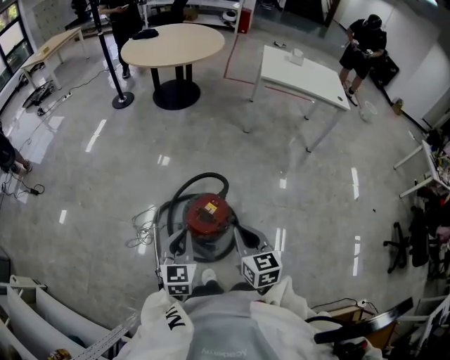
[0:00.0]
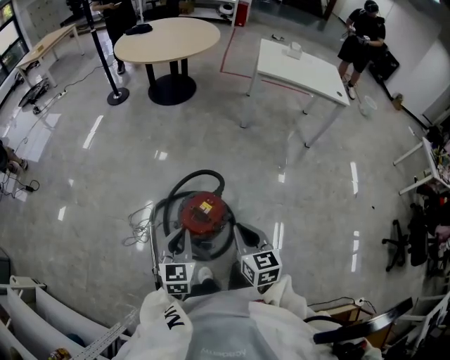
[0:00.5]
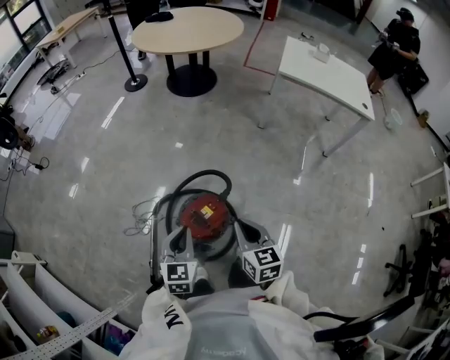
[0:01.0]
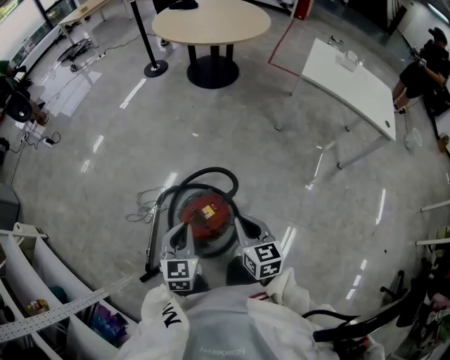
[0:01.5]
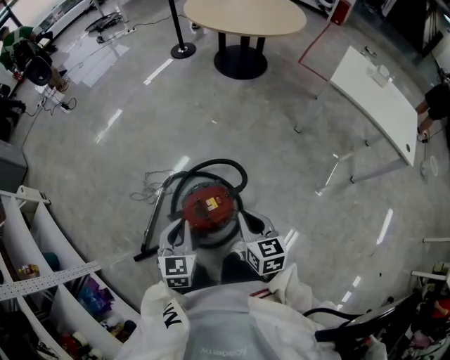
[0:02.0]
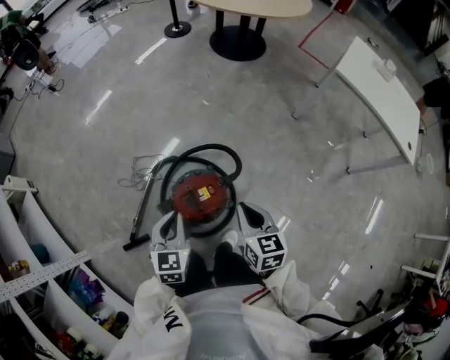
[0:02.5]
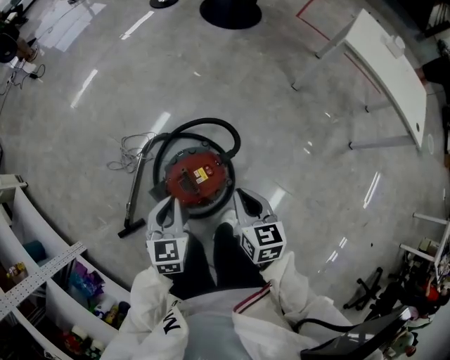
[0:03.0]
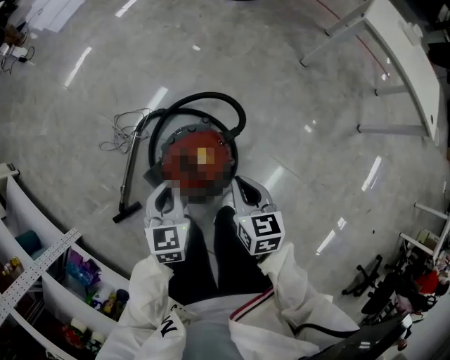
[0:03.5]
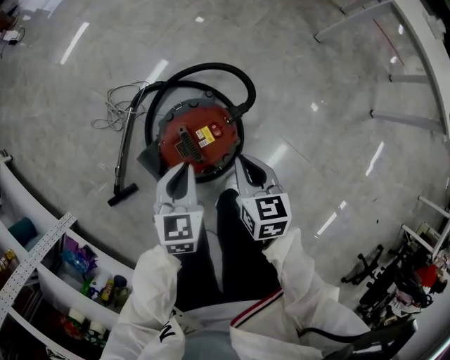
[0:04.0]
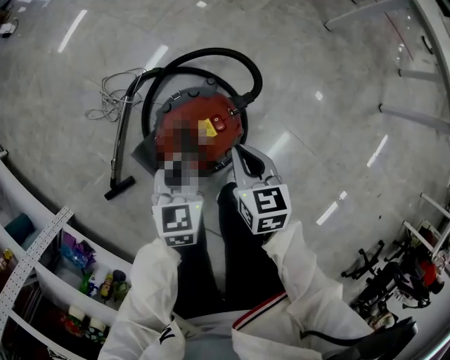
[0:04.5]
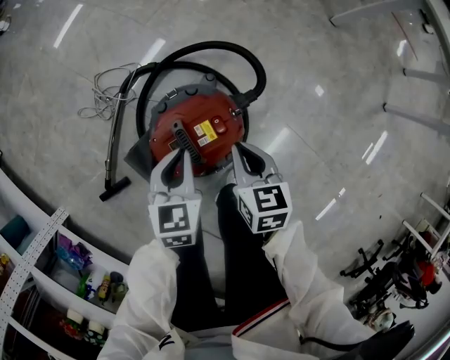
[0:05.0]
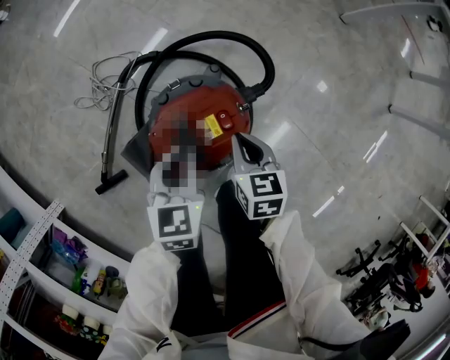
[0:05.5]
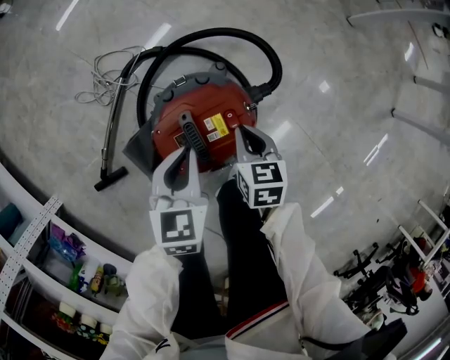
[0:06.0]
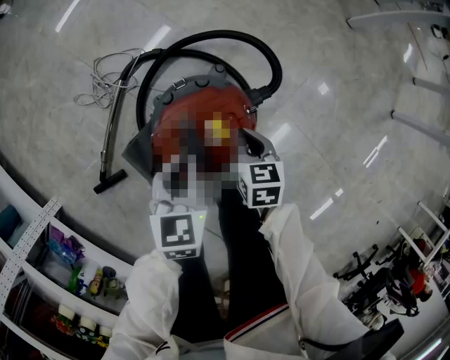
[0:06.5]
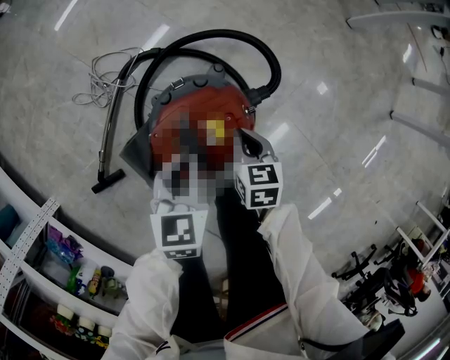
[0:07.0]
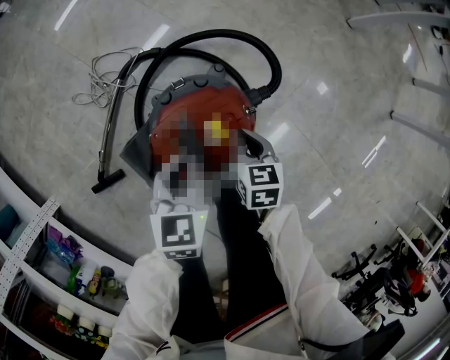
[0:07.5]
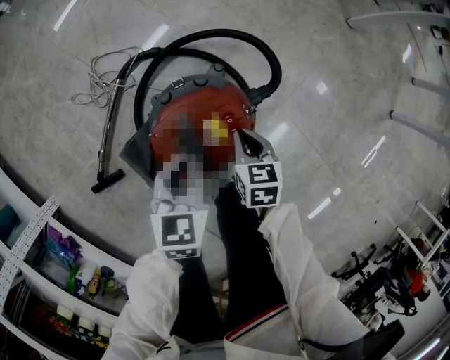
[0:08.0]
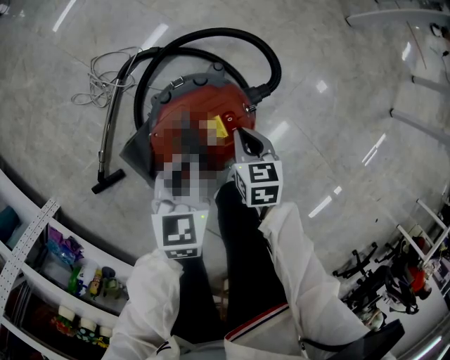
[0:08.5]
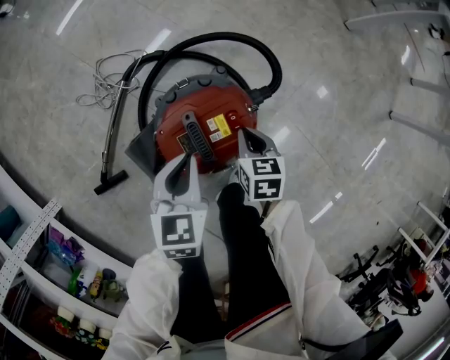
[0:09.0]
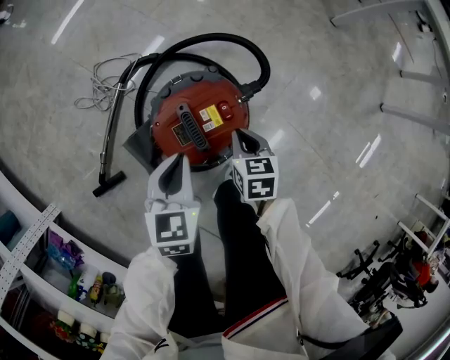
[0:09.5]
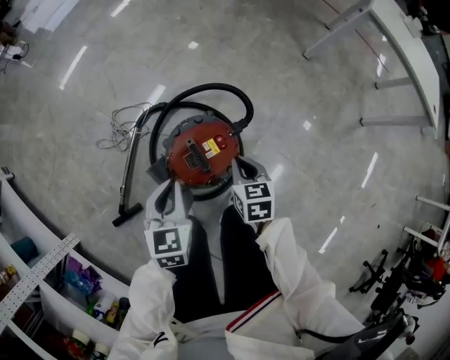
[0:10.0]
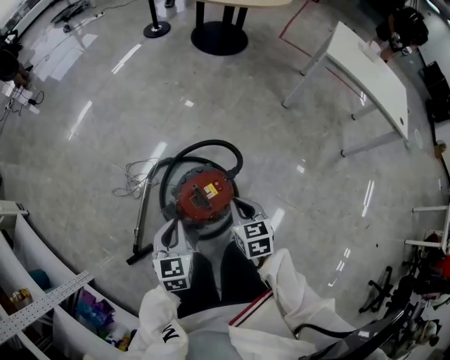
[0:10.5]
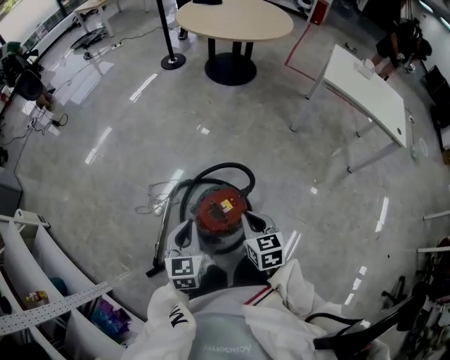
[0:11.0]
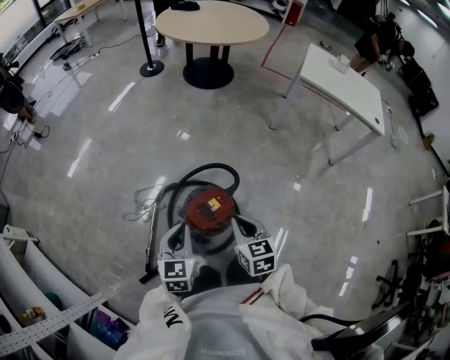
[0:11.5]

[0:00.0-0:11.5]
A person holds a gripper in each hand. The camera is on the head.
0:00.0 to 0:02.0: The left gripper moves about 10 cm, and turns by some 30 degrees; the right gripper moves about 15 cm, and turns by about 30 degrees.
0:02.0 to 0:04.0: The grippers both shift downward by about 20 cm.
0:04.0 to 0:06.0: The left gripper goes about 10 cm downward; the right gripper travels downward by approximately 15 cm.
0:06.0 to 0:09.5: The grippers stay close to where they were, moving slightly.
0:09.5 to 0:11.5: The grippers both shift upward by some 30 cm. The right gripper changes its angle by some 20 degrees; the left gripper turns by some 20 degrees.

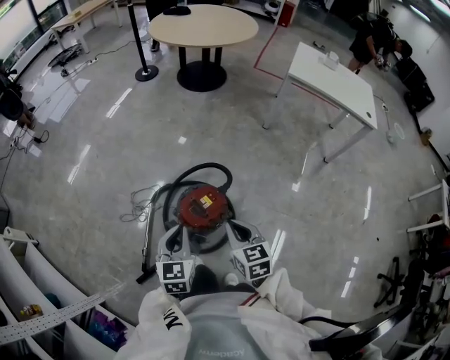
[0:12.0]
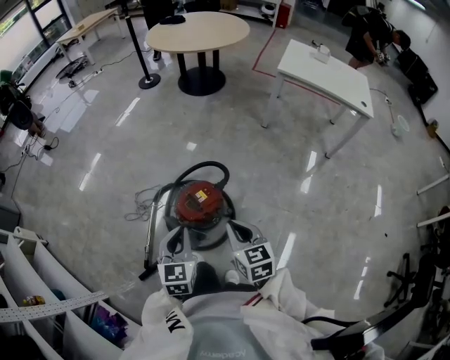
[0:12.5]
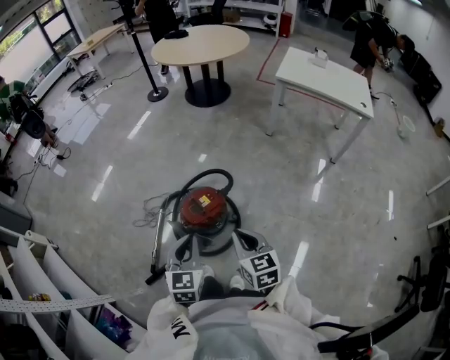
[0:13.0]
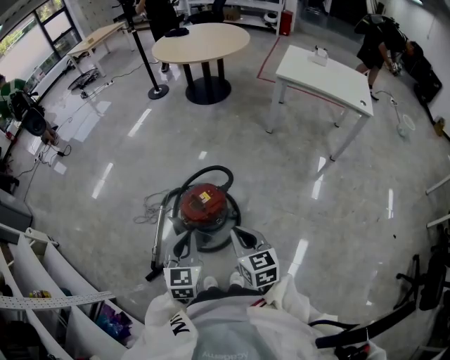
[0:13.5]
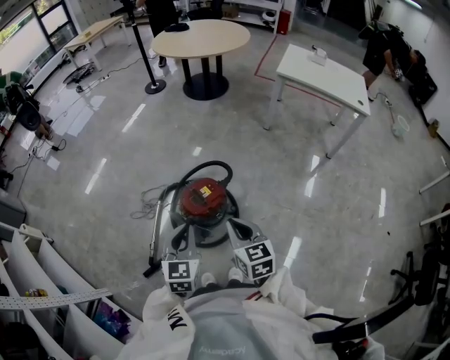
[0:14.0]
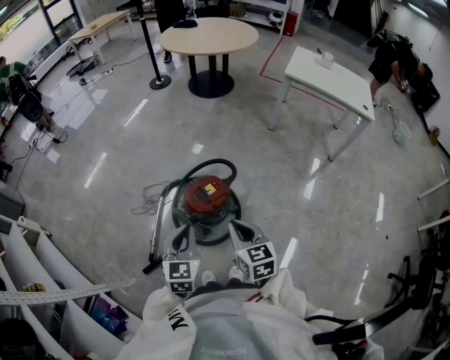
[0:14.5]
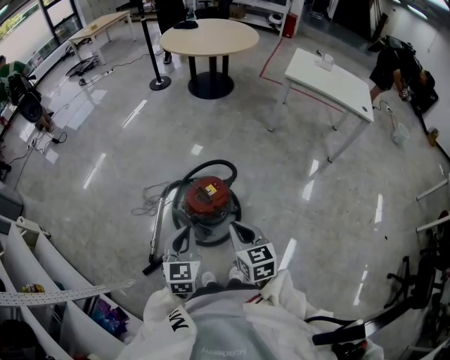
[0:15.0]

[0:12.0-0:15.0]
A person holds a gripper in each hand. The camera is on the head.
0:12.0 to 0:13.5: Both grippers move backward and to the right, some 15 cm.
0:13.5 to 0:15.0: Both grippers move to the left, roughly 5 cm.

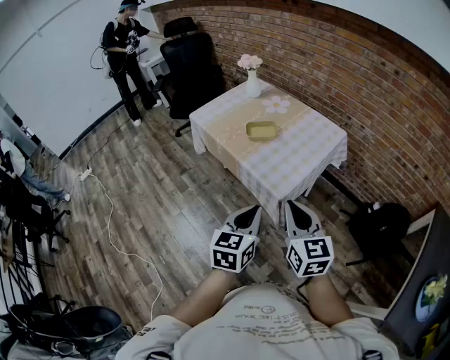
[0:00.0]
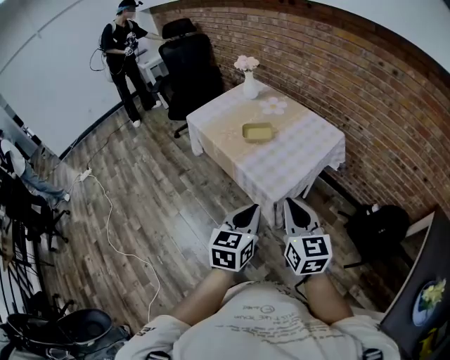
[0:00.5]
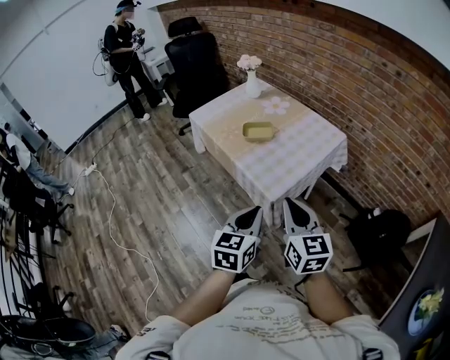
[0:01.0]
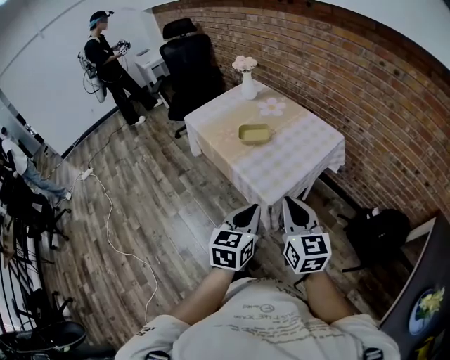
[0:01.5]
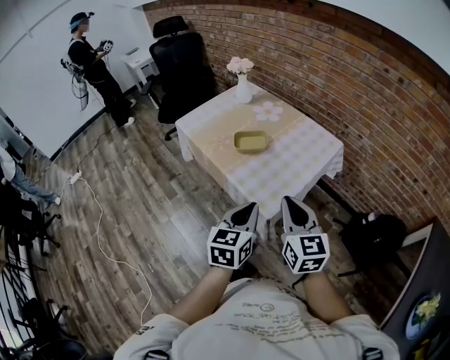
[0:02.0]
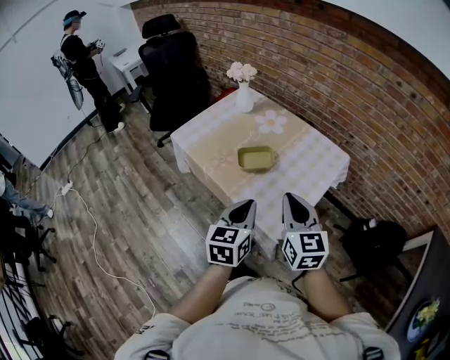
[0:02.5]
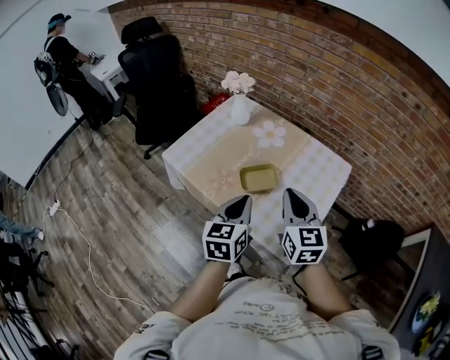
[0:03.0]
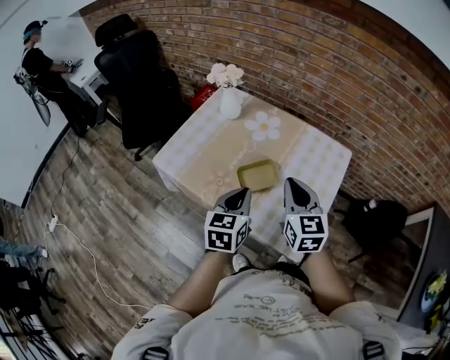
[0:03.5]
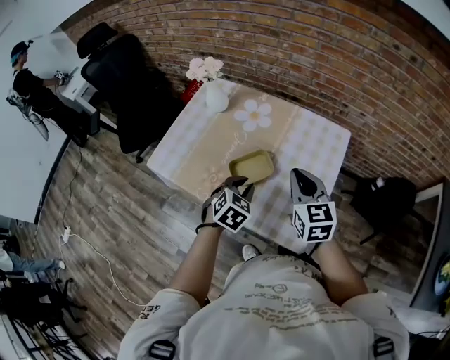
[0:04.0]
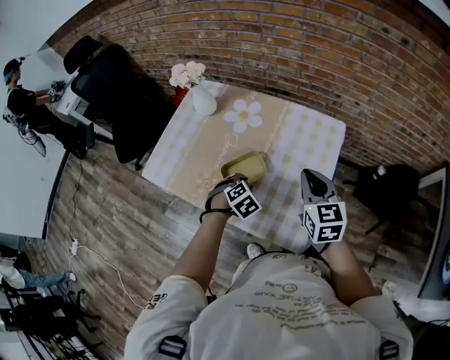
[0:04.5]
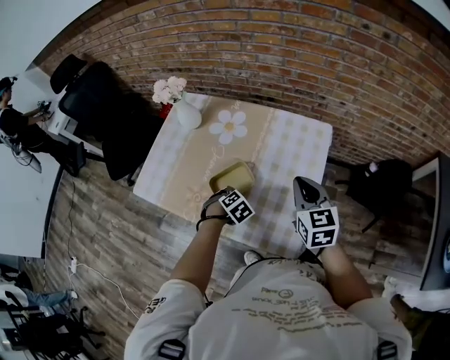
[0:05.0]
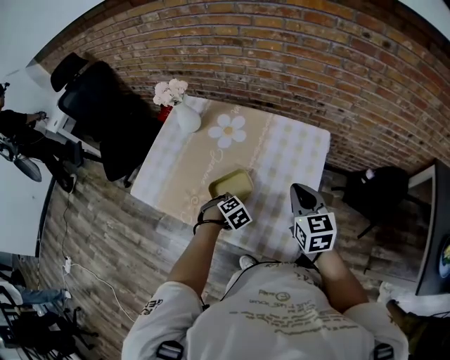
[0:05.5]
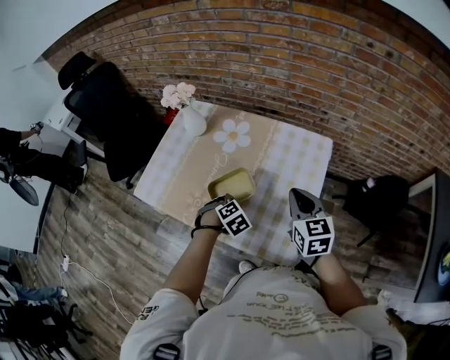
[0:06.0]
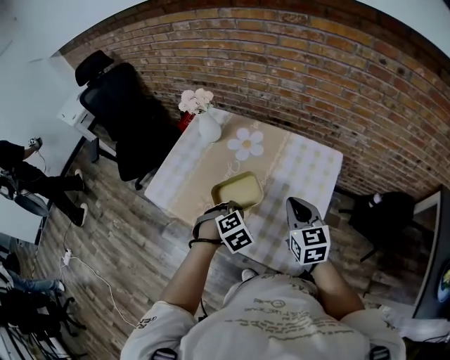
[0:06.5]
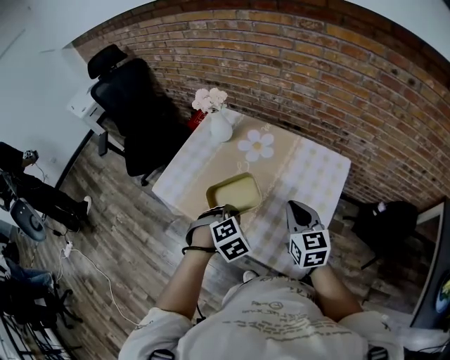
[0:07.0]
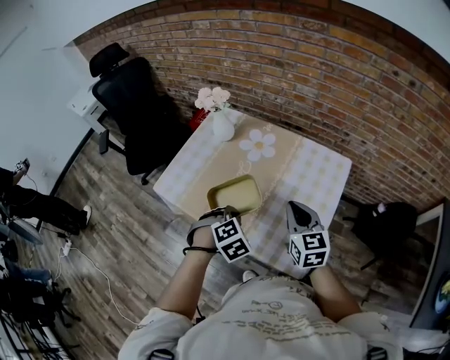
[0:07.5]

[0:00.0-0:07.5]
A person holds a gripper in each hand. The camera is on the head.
0:00.0 to 0:02.0: The two grippers go some 10 cm forward.
0:02.0 to 0:04.0: The left gripper shifts approximately 35 cm forward and to the left, and turns by approximately 50 degrees; the right gripper moves forward, roughly 30 cm, and swivels some 20 degrees.
0:04.0 to 0:05.5: The right gripper ends up some 10 cm from where it was; the left gripper is displaced downward by roughly 15 cm, and turns by about 40 degrees.
0:05.5 to 0:07.5: The left gripper travels upward by roughly 15 cm. The right gripper ends up roughly 10 cm from where it was.

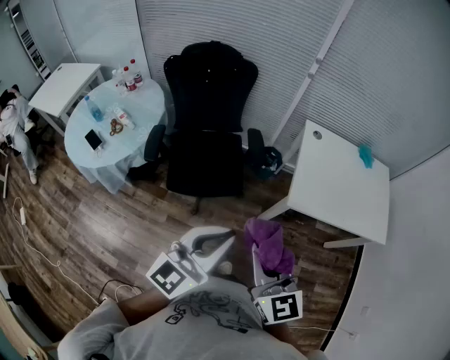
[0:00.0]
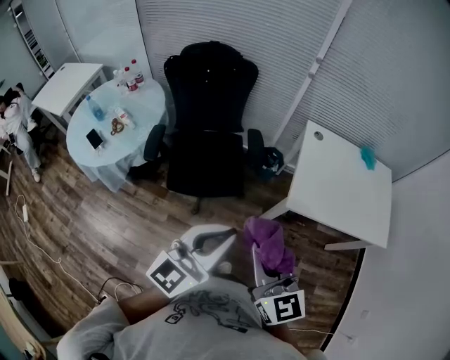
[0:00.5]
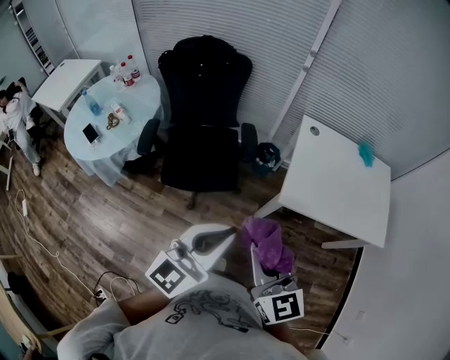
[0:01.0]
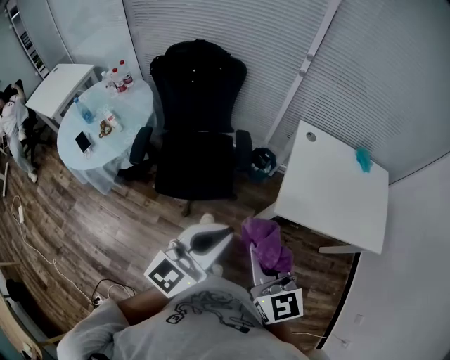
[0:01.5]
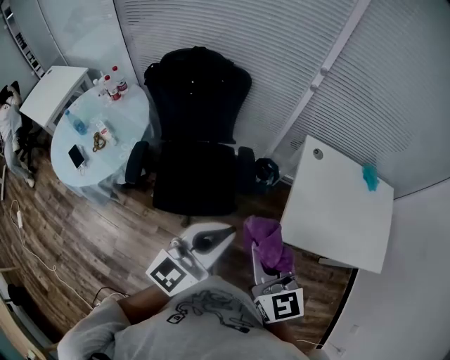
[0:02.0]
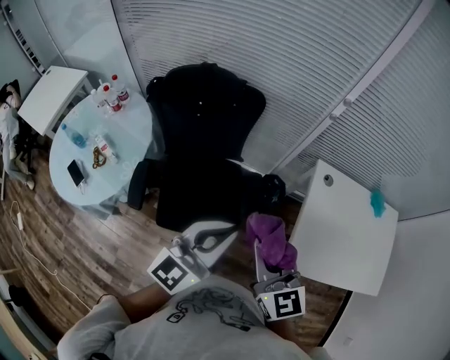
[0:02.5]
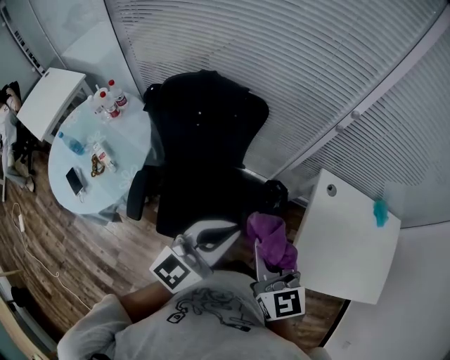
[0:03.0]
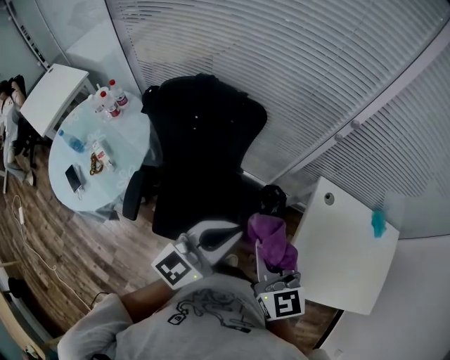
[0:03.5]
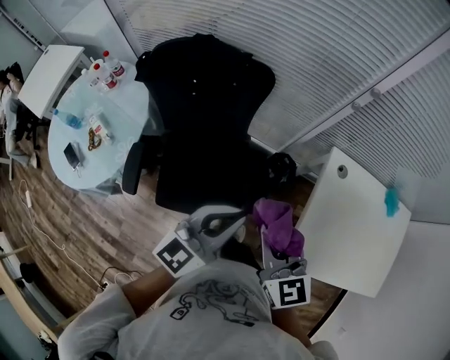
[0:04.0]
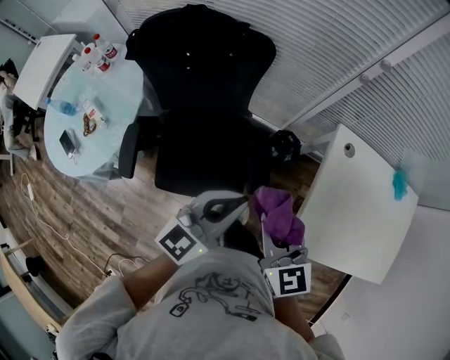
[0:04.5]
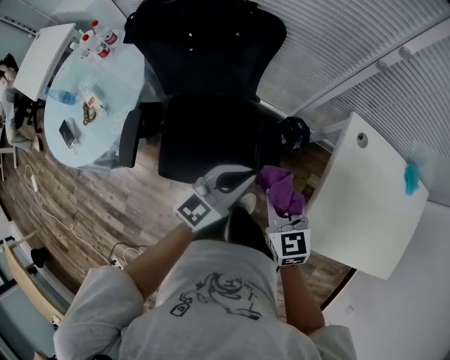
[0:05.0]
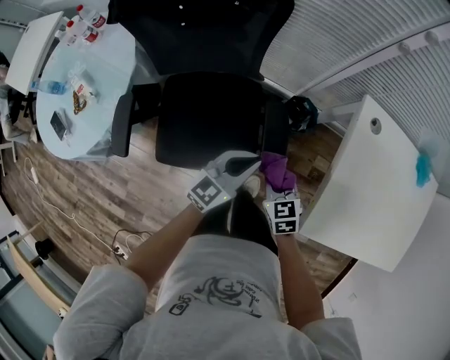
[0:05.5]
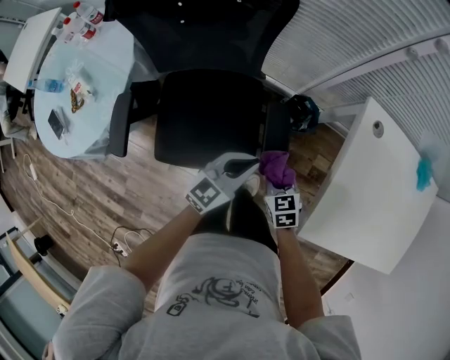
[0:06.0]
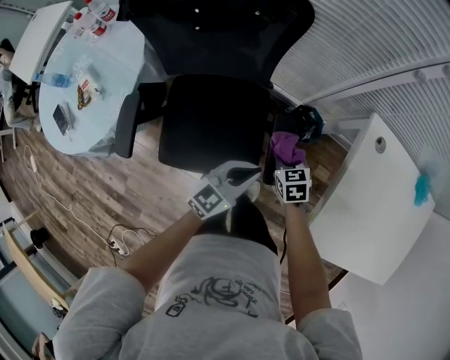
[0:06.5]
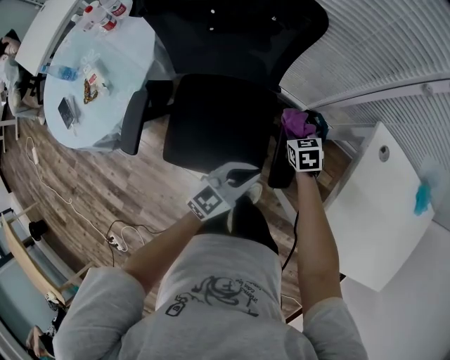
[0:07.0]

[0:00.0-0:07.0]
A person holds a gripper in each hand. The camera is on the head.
0:00.0 to 0:02.0: Both grippers move forward, some 20 cm.
0:02.0 to 0:03.5: Both grippers move forward, about 25 cm.
0:03.5 to 0:05.0: The two grippers go roughly 20 cm downward.
0:05.0 to 0:07.0: The left gripper moves downward, some 15 cm, while the right gripper moves downward and forward, approximately 30 cm, and rotates roughly 20 degrees.
